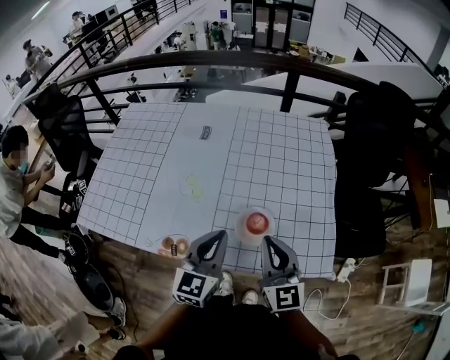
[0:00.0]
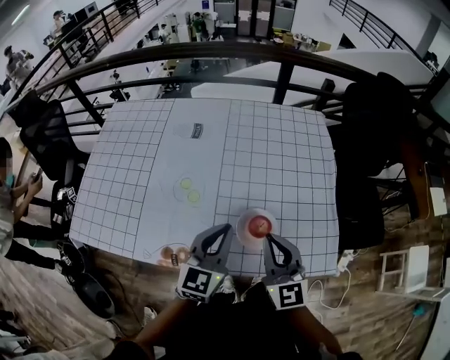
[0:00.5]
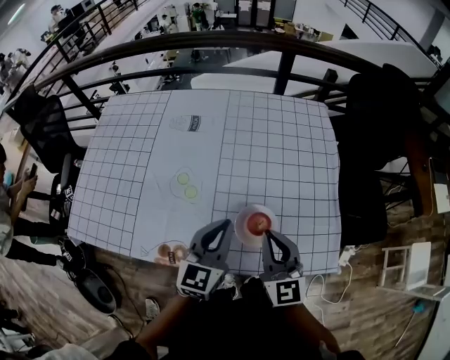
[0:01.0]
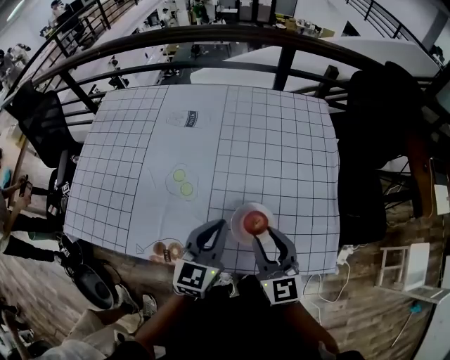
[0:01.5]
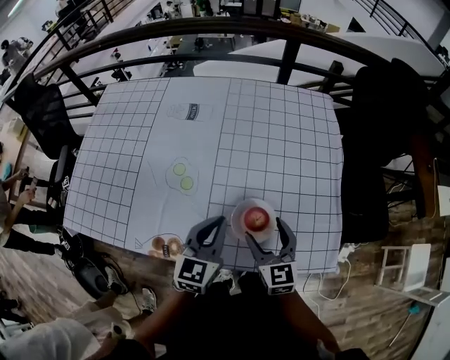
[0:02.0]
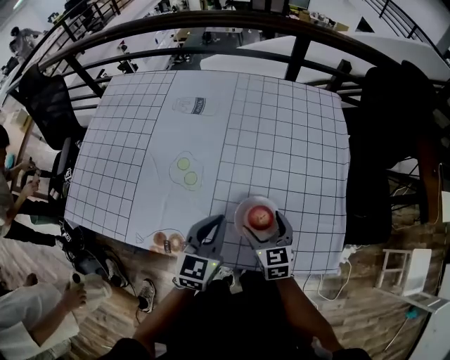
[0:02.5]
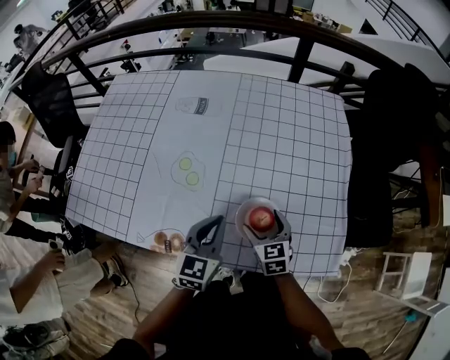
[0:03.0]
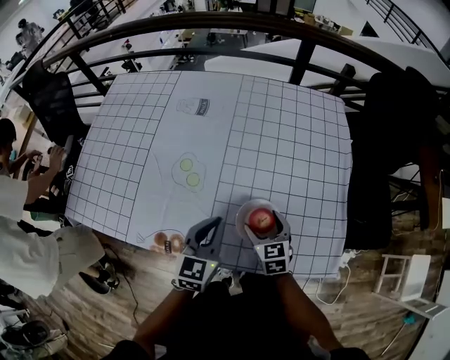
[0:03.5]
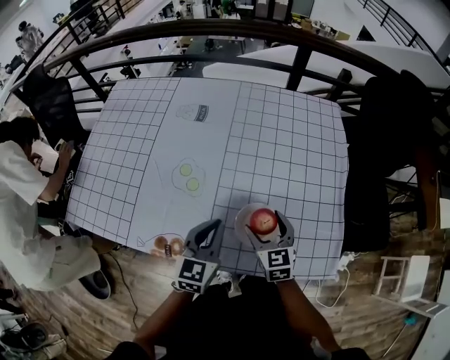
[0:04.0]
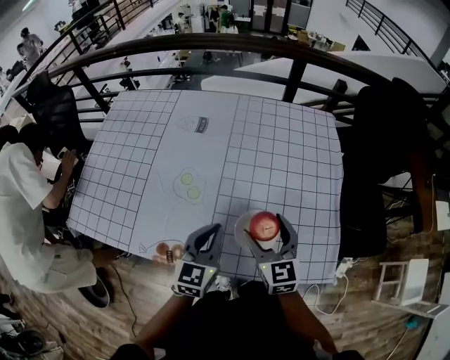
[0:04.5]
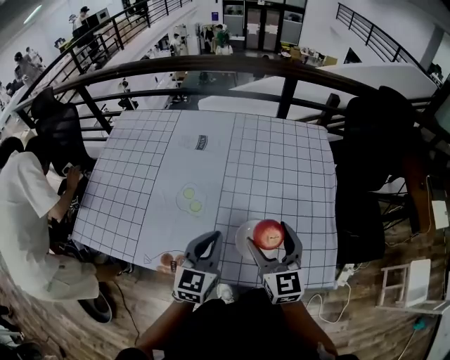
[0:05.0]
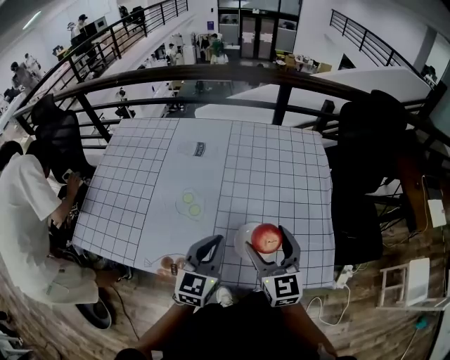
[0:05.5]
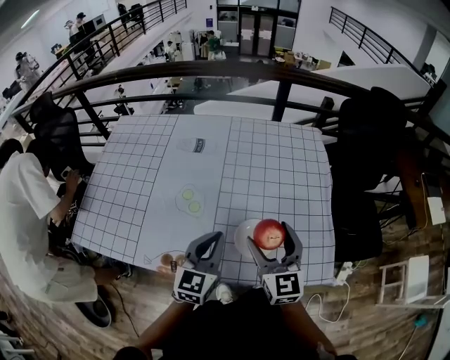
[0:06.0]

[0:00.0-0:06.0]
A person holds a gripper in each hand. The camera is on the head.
0:00.0 to 0:02.0: The grippers both shift downward and forward by some 15 cm. The right gripper changes its angle by approximately 20 degrees, and opens up.
0:04.0 to 0:06.0: The right gripper travels upward by about 15 cm, and swivels about 20 degrees. Meanwhile the left gripper travels upward by some 5 cm.

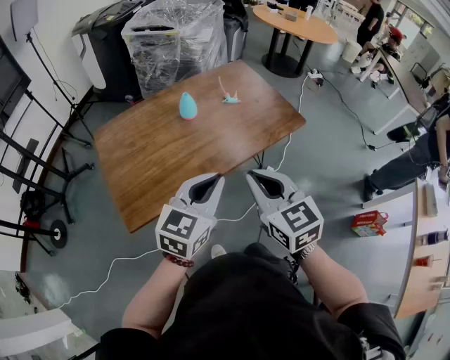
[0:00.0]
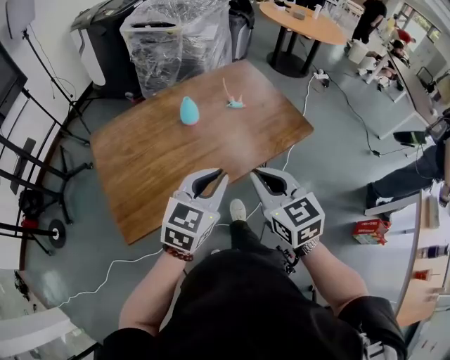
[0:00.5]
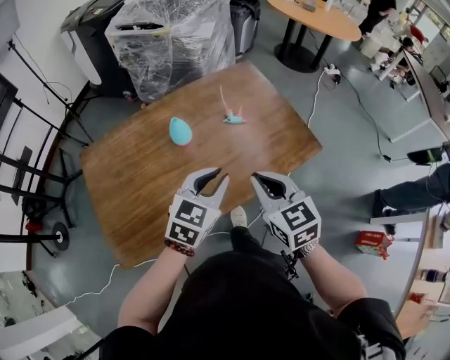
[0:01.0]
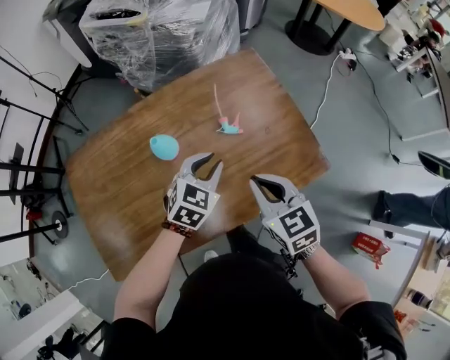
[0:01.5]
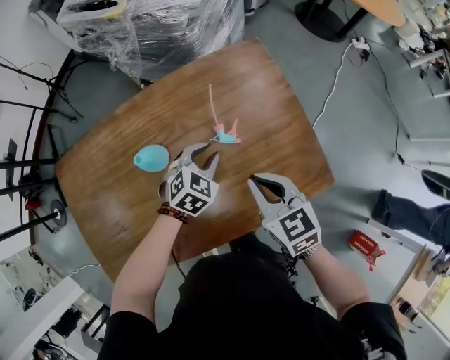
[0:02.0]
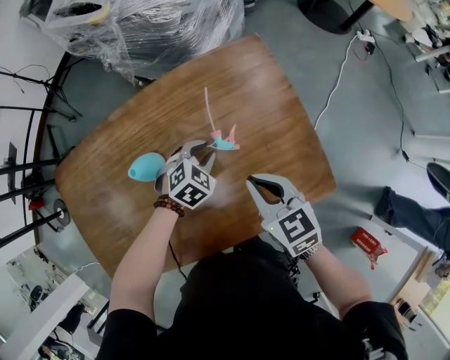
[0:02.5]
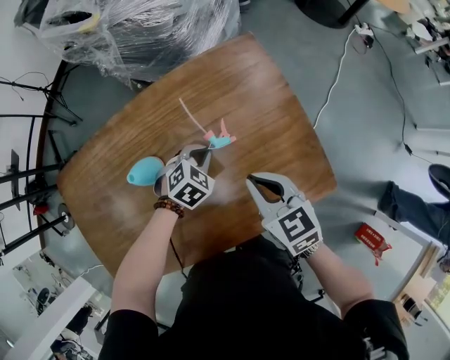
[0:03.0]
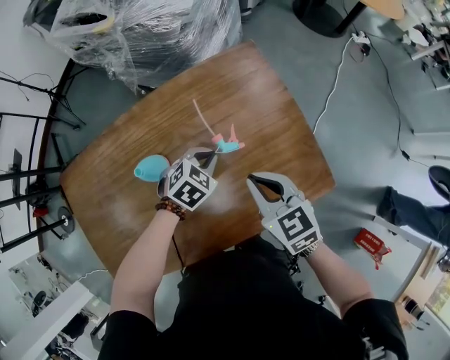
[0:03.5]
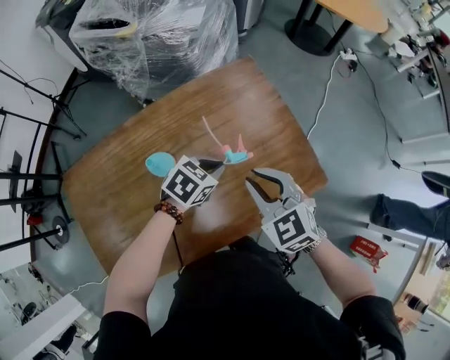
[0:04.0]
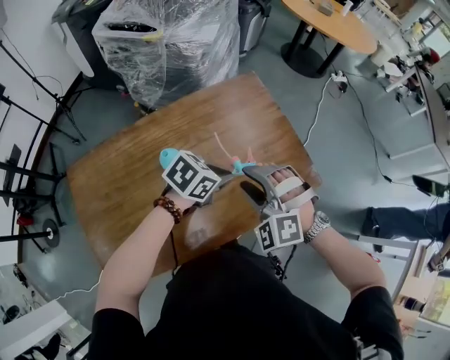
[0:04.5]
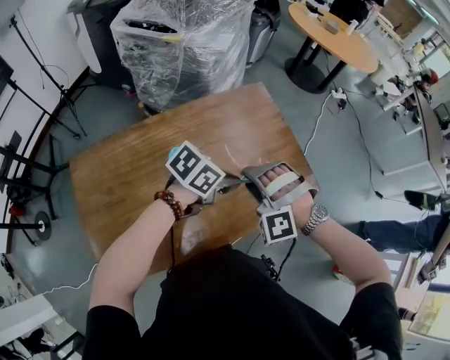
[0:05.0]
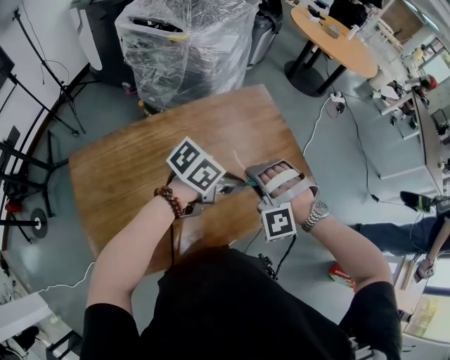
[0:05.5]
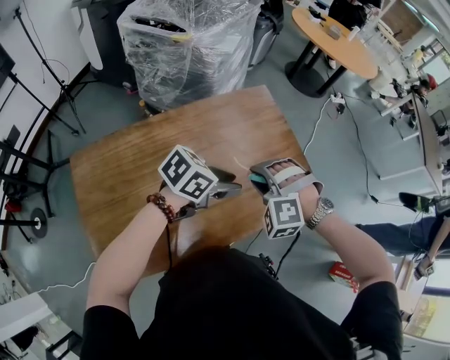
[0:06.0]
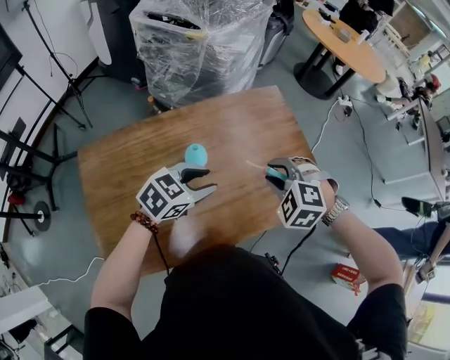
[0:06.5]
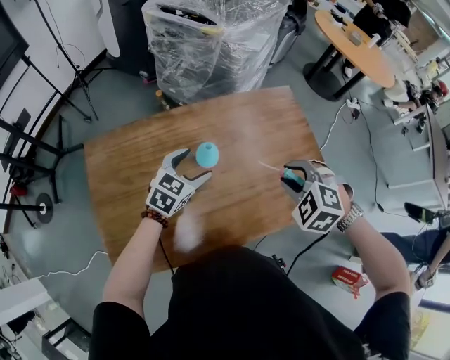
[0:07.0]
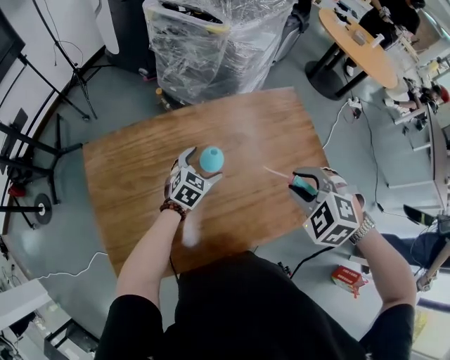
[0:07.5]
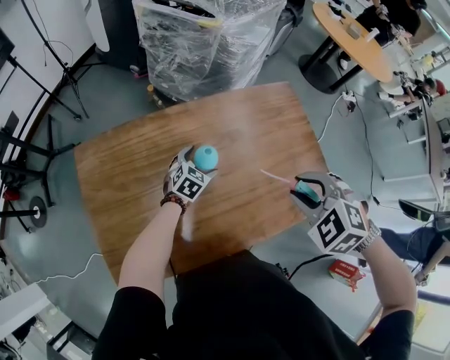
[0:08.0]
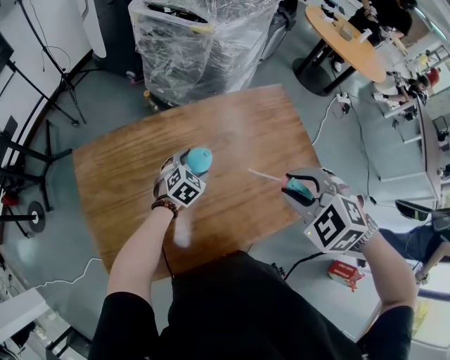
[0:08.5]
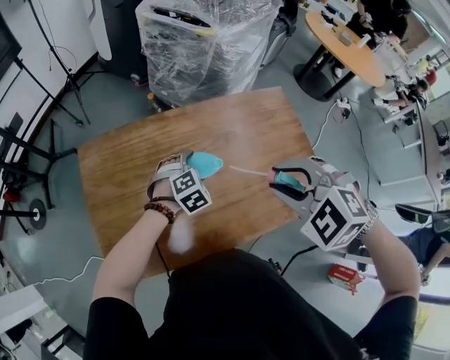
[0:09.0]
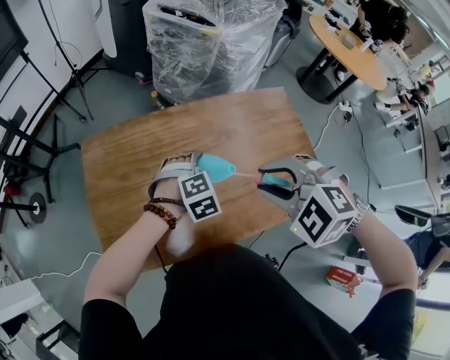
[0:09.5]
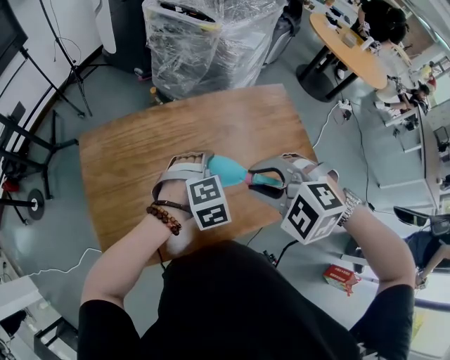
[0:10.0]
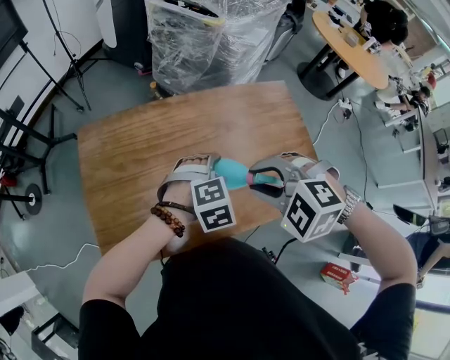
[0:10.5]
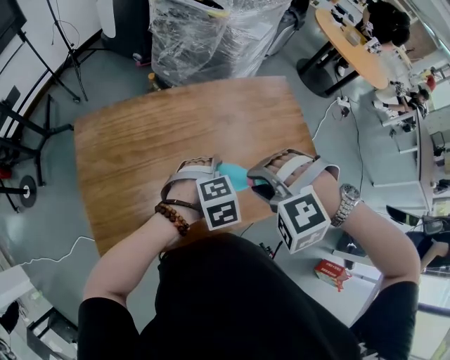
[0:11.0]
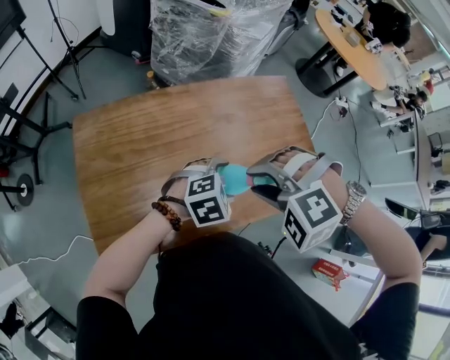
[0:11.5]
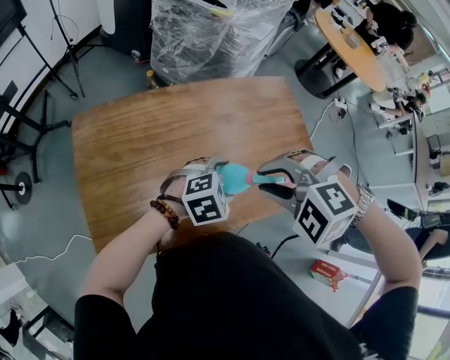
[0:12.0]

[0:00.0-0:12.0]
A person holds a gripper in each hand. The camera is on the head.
0:00.0 to 0:02.0: The grippers both shift forward and downward by approximately 50 cm. The right gripper changes its angle by roughly 20 degrees; the left gripper points its fingers roughly 40 degrees further downward.
0:02.0 to 0:04.0: The left gripper travels upward by approximately 5 cm, and rotates some 20 degrees. Meanwhile the right gripper rotates some 20 degrees.
0:04.0 to 0:06.0: The right gripper shifts by approximately 5 cm, and twists about 60 degrees counterclockwise, seen from behind. The left gripper shifts some 15 cm upward and backward, and rotates approximately 30 degrees.
0:06.0 to 0:08.0: The left gripper heads downward, covering roughly 20 cm, turns by roughly 50 degrees, and opens; the right gripper moves upward, about 5 cm, and turns by some 30 degrees.
0:08.0 to 0:10.0: The right gripper is displaced to the left by roughly 10 cm, and swivels roughly 20 degrees. The left gripper shifts about 20 cm upward and backward, and turns by roughly 40 degrees.
0:10.0 to 0:12.0: The left gripper shifts some 5 cm backward, and turns by approximately 30 degrees.

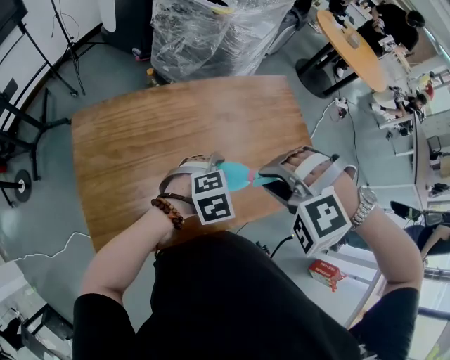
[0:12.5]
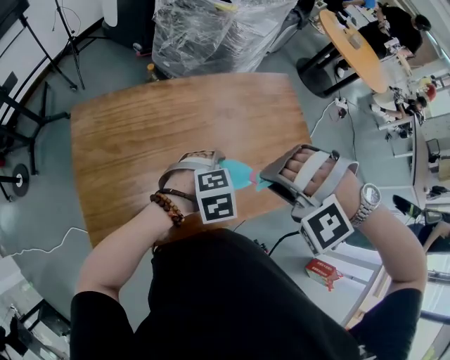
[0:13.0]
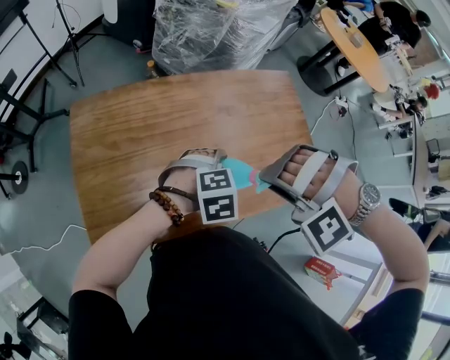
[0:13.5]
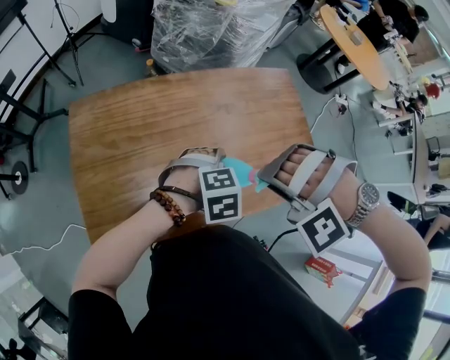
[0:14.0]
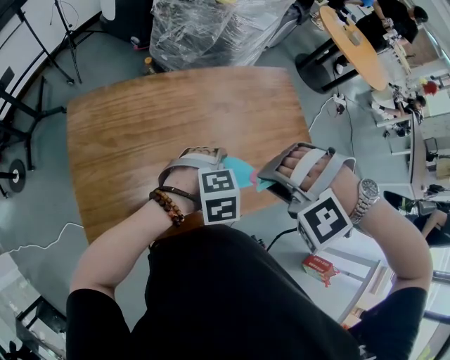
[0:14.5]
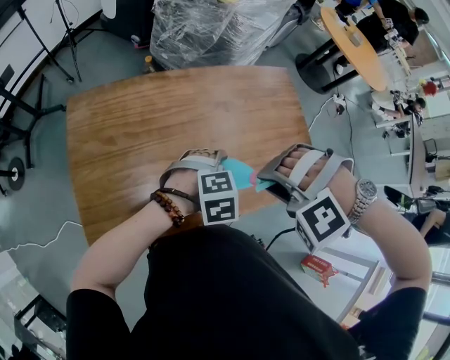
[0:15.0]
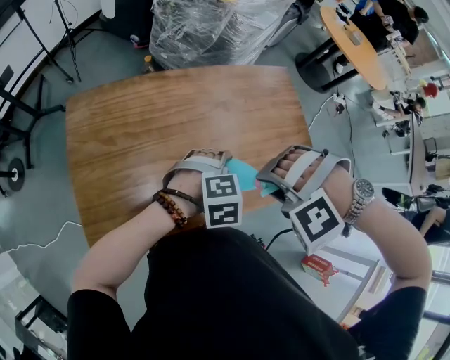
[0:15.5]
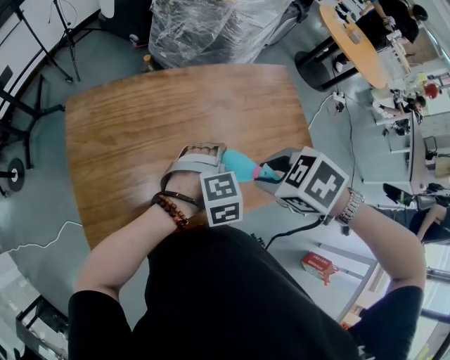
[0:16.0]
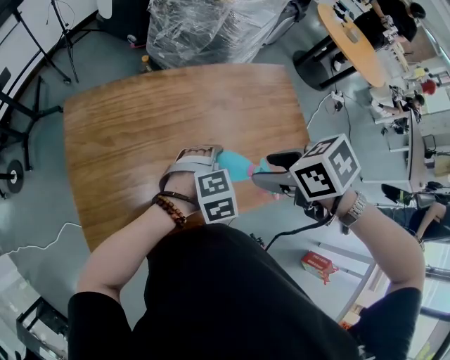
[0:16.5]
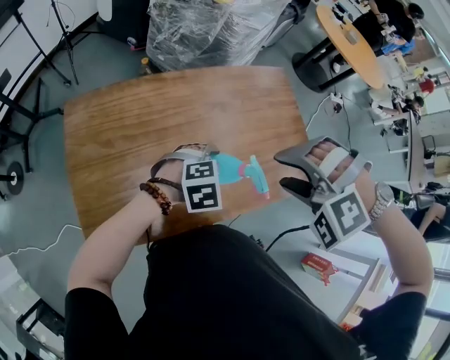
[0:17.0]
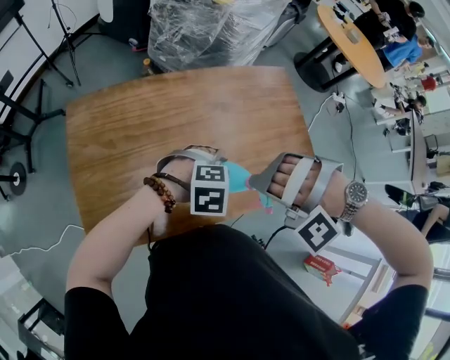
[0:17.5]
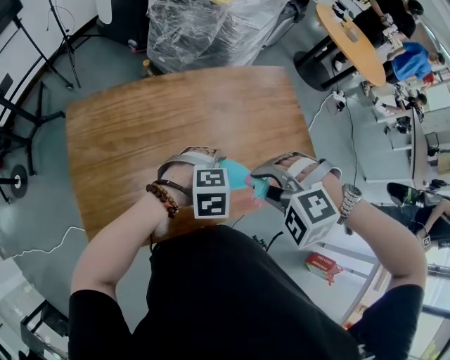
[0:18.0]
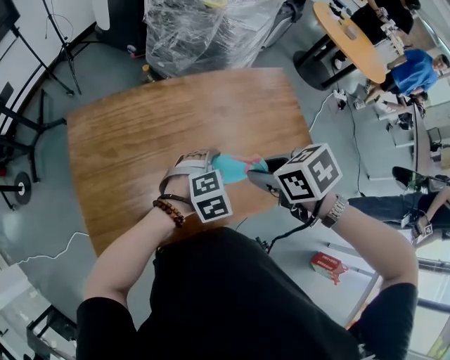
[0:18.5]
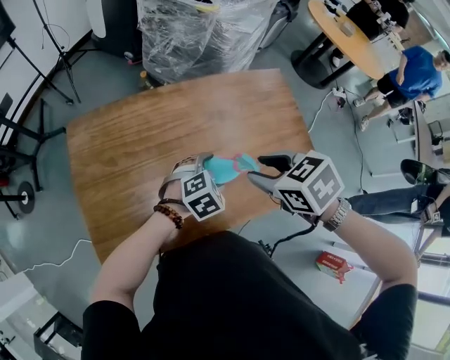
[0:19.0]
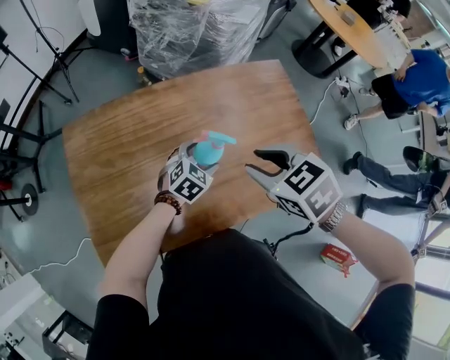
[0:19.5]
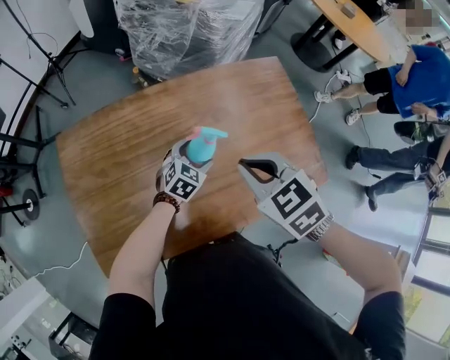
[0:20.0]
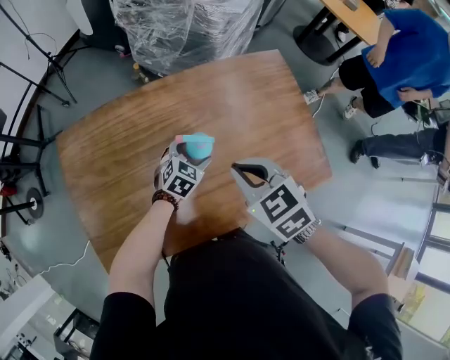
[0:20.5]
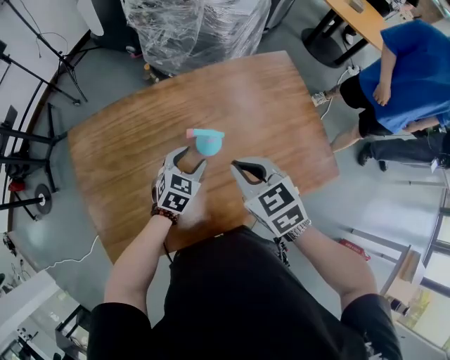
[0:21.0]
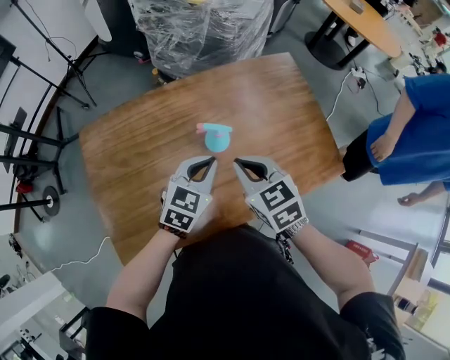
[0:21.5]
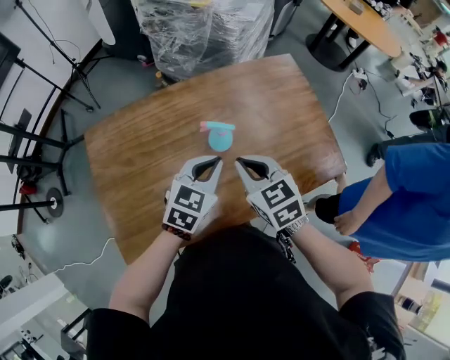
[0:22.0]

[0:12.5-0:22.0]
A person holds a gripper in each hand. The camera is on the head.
0:14.5 to 0:16.5: The right gripper twists about 100 degrees clockwise, seen from behind, and opens its fingers.
0:16.5 to 0:18.0: The right gripper rolls counterclockwise, seen from behind, by approximately 80 degrees, and closes its fingers.
0:18.0 to 0:20.0: The right gripper moves forward, approximately 10 cm, rotates around the line of its fingers by approximately 60 degrees, clockwise from behind, and closes up, while the left gripper goes roughly 15 cm forward and downward, and rotates some 50 degrees.
0:20.0 to 0:22.0: The left gripper goes roughly 20 cm upward and backward, and closes up. Meanwhile the right gripper moves roughly 5 cm.
